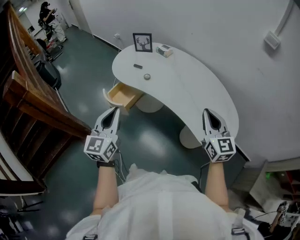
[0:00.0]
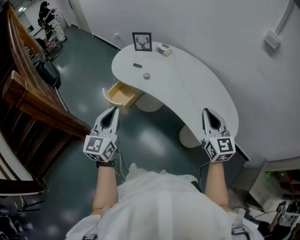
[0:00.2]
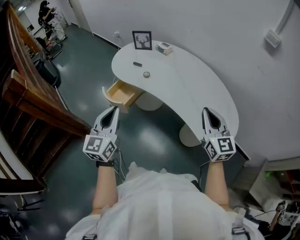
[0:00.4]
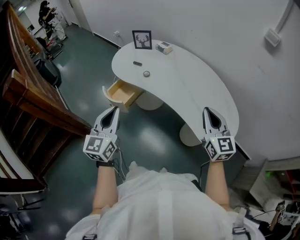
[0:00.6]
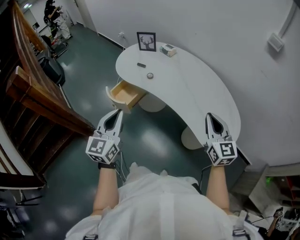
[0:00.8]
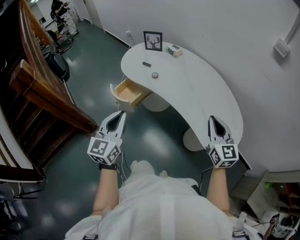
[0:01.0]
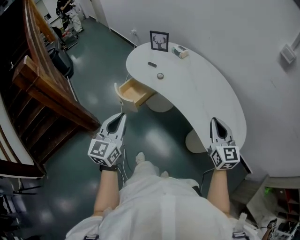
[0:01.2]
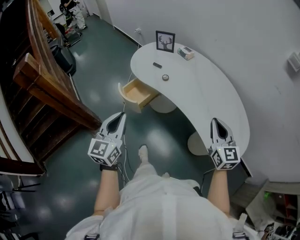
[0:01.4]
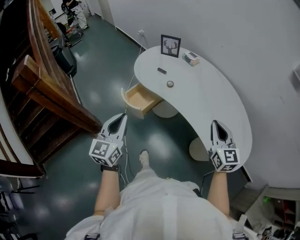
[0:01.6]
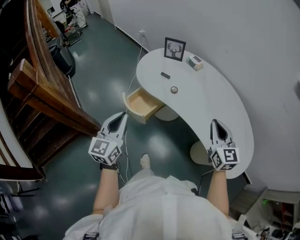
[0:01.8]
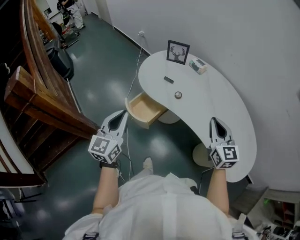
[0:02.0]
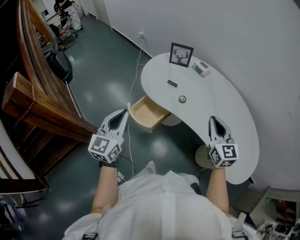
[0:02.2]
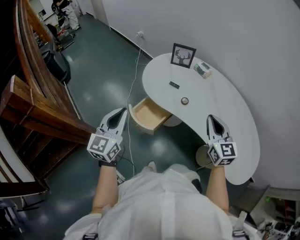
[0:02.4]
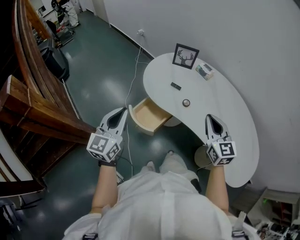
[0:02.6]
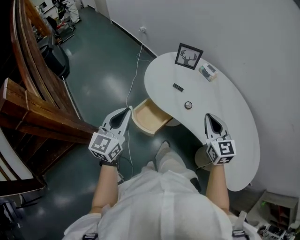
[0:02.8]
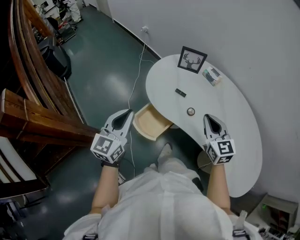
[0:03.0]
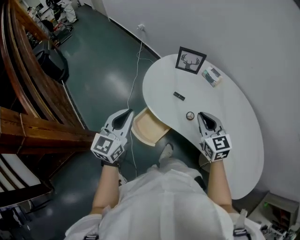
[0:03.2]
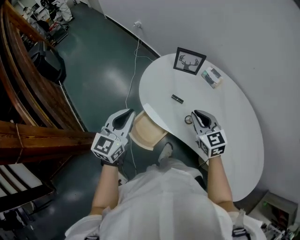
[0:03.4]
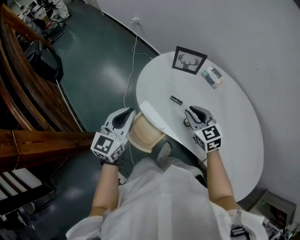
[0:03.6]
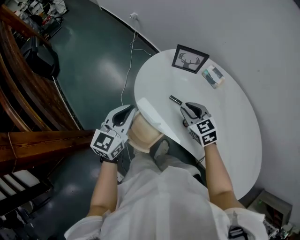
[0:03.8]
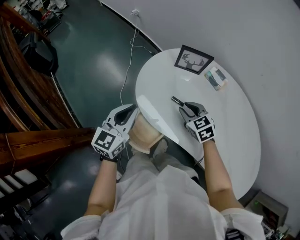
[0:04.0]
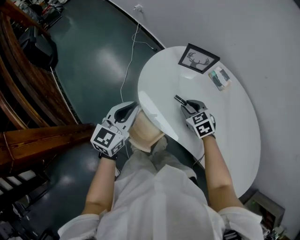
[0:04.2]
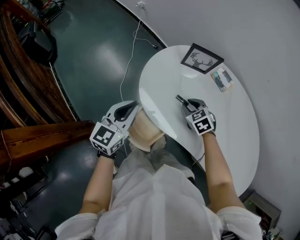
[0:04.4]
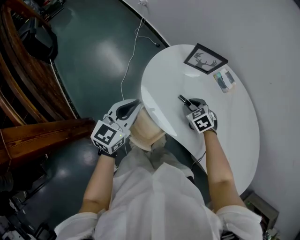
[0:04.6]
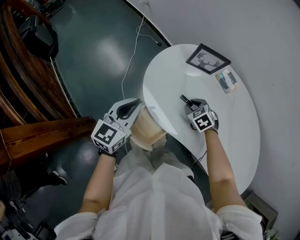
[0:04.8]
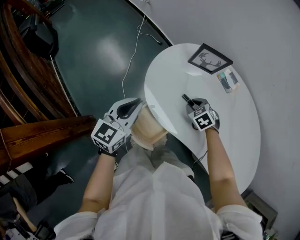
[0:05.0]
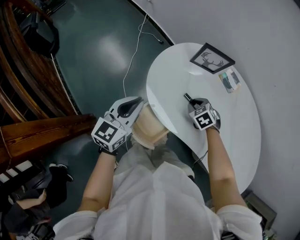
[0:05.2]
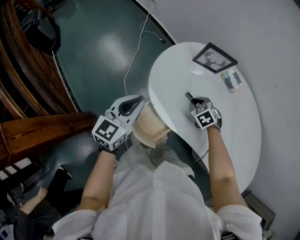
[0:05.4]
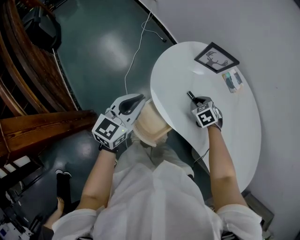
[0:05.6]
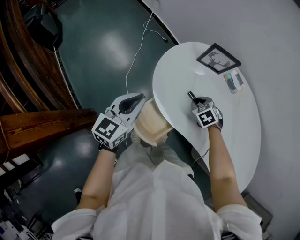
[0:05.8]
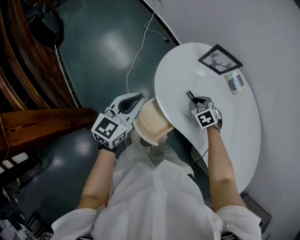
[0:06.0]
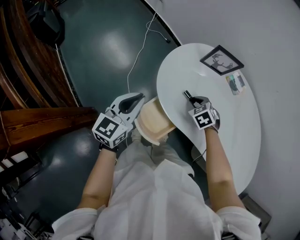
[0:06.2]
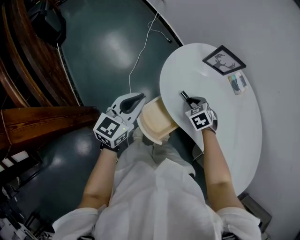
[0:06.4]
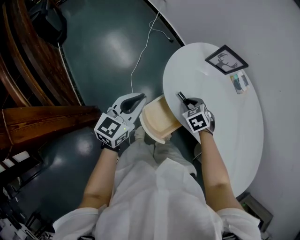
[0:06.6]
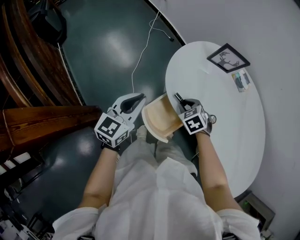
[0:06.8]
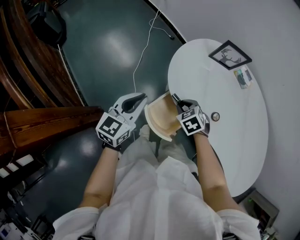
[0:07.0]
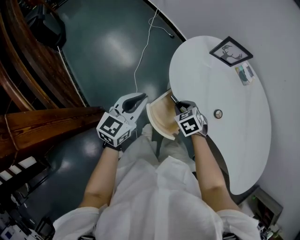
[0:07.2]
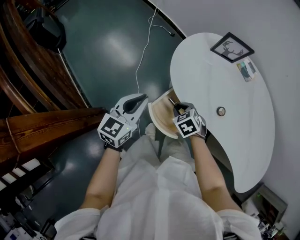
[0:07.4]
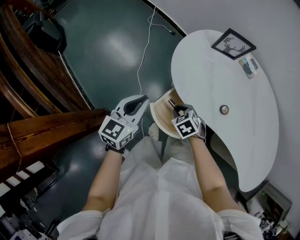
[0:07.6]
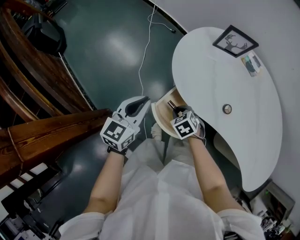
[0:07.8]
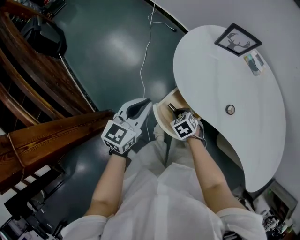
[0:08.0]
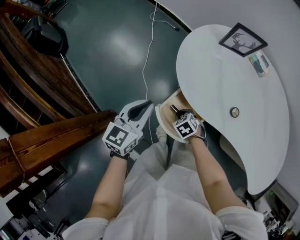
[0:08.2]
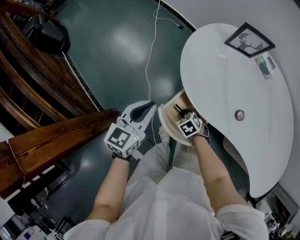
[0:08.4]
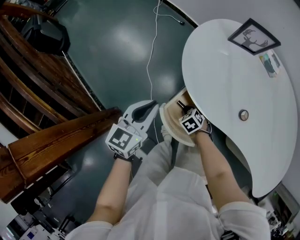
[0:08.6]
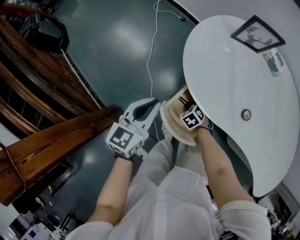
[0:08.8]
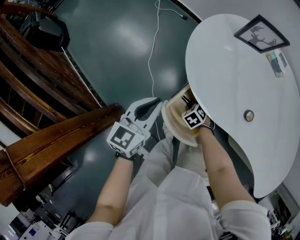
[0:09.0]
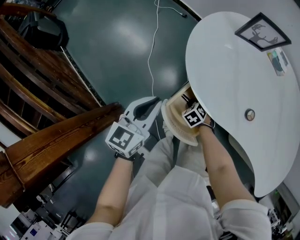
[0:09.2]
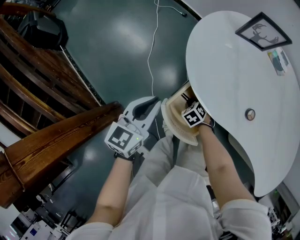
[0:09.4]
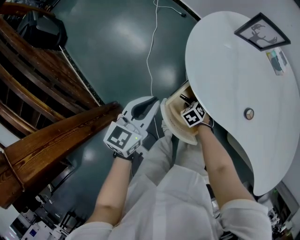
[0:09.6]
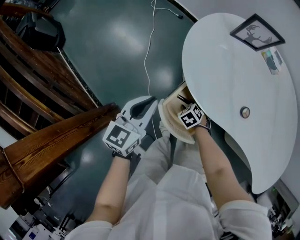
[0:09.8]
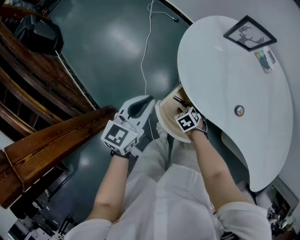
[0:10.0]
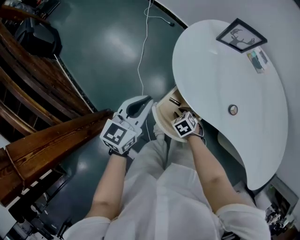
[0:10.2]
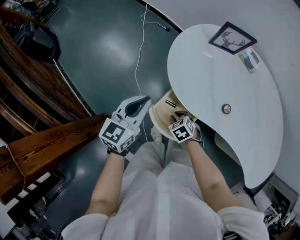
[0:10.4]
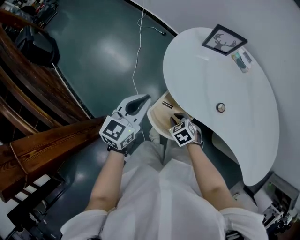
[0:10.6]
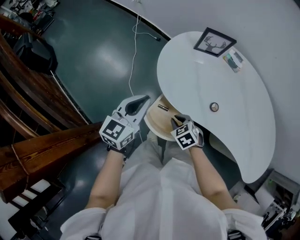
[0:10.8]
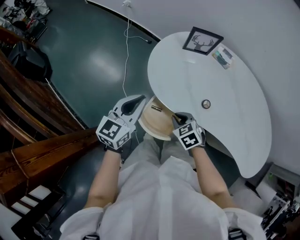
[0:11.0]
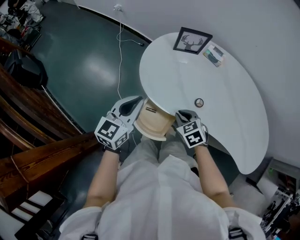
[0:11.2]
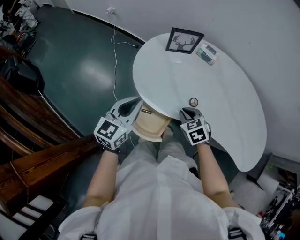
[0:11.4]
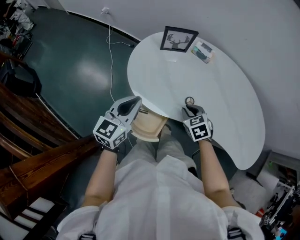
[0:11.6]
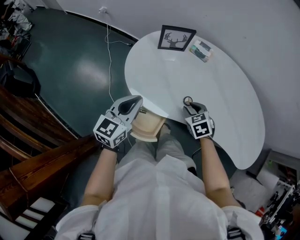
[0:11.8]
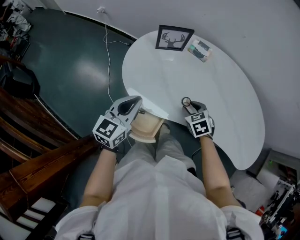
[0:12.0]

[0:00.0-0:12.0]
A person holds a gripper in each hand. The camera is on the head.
0:00.0 to 0:01.6: The left gripper moves to the left, about 5 cm; the right gripper heads forward and to the left, covering roughly 10 cm.
0:01.6 to 0:03.0: Both grippers move forward and to the left, roughly 30 cm.
0:03.0 to 0:04.4: The right gripper shifts approximately 30 cm downward and forward, tilts its fingers approximately 40 degrees downward, and opens its fingers. The left gripper travels forward and downward by roughly 20 cm.
0:04.4 to 0:06.0: The left gripper goes some 5 cm to the left.
0:06.0 to 0:07.6: The right gripper is displaced to the left and backward by some 20 cm; the left gripper heads to the left, covering some 5 cm.
0:07.6 to 0:09.0: The right gripper moves downward, some 20 cm. Meanwhile the left gripper heads downward, covering some 5 cm.
0:09.0 to 0:10.4: The right gripper is displaced upward by approximately 15 cm, while the left gripper travels upward by approximately 5 cm.
0:10.4 to 0:12.0: The left gripper changes place by approximately 15 cm; the right gripper shifts by roughly 30 cm, and changes its angle by about 30 degrees.

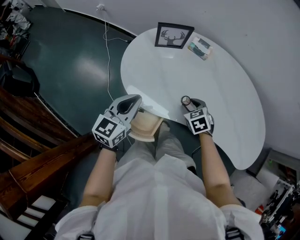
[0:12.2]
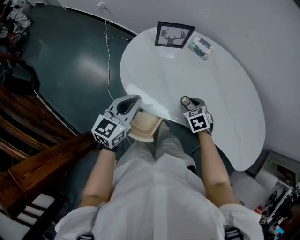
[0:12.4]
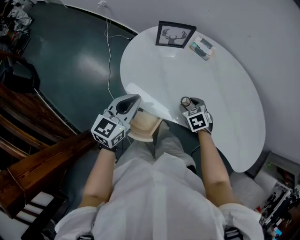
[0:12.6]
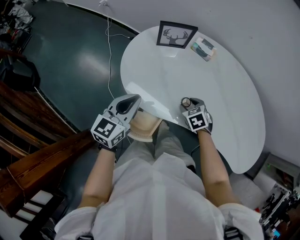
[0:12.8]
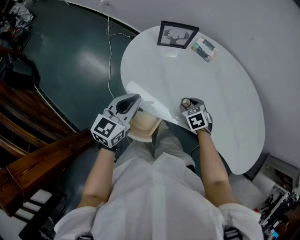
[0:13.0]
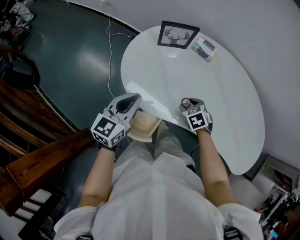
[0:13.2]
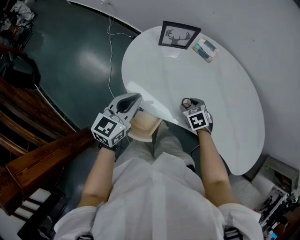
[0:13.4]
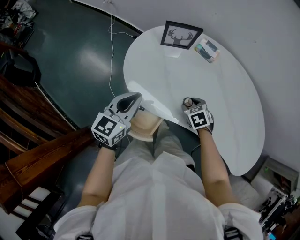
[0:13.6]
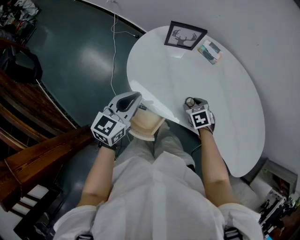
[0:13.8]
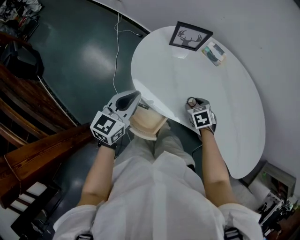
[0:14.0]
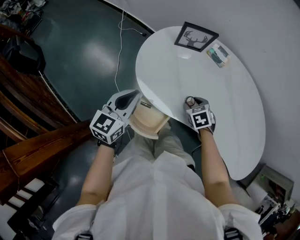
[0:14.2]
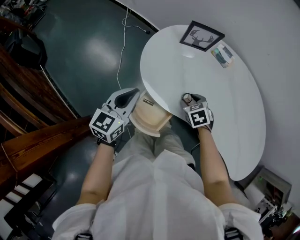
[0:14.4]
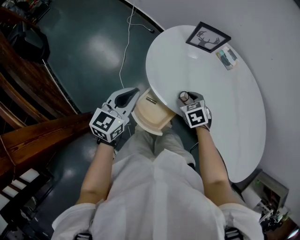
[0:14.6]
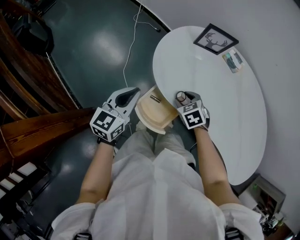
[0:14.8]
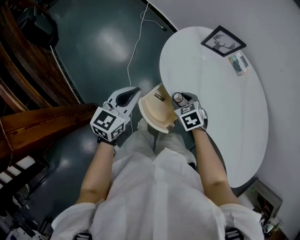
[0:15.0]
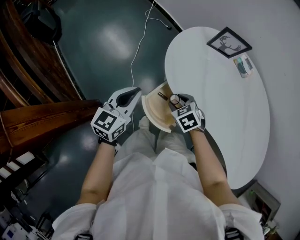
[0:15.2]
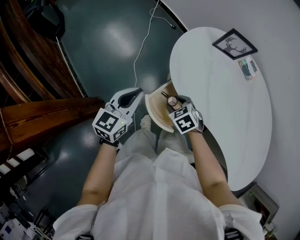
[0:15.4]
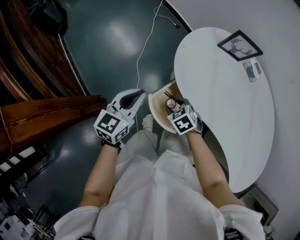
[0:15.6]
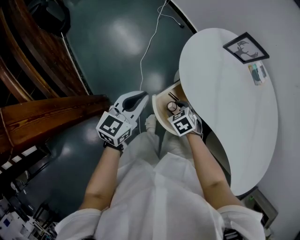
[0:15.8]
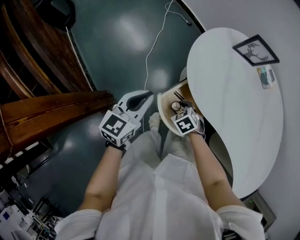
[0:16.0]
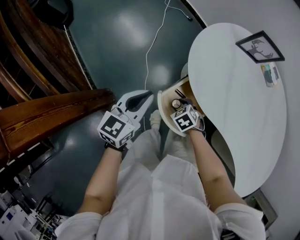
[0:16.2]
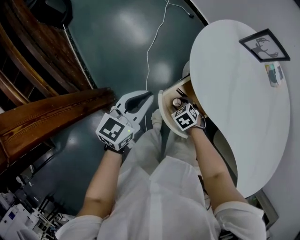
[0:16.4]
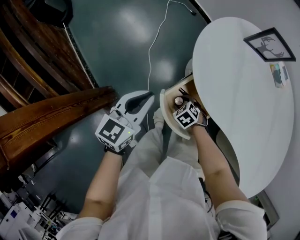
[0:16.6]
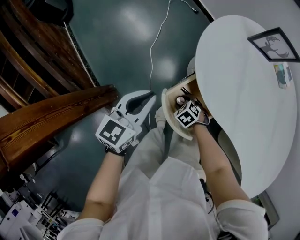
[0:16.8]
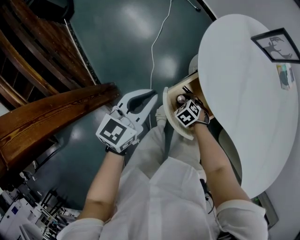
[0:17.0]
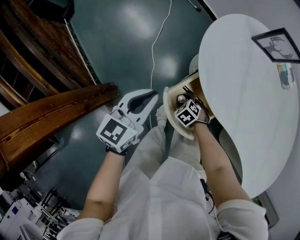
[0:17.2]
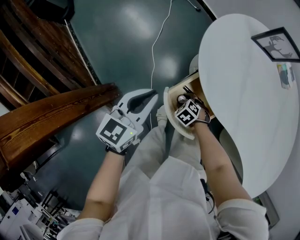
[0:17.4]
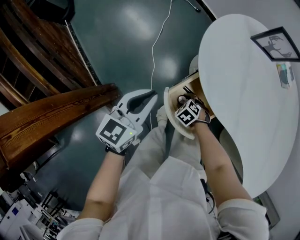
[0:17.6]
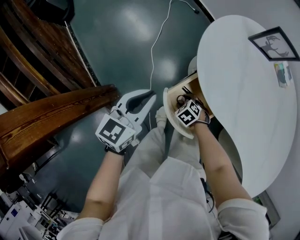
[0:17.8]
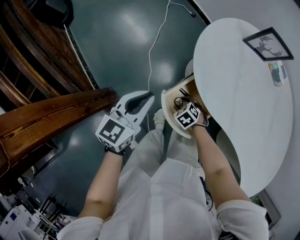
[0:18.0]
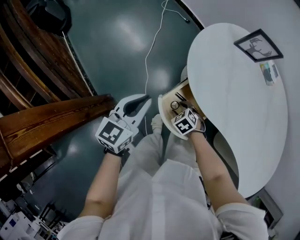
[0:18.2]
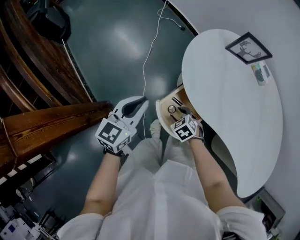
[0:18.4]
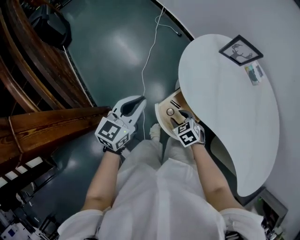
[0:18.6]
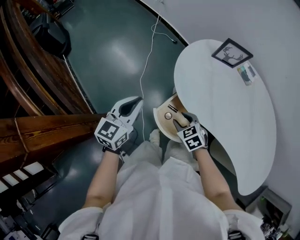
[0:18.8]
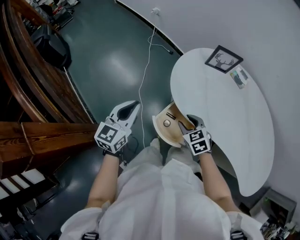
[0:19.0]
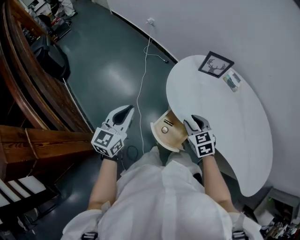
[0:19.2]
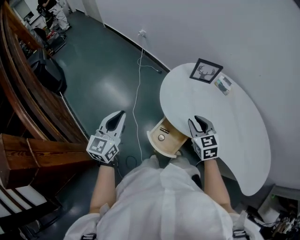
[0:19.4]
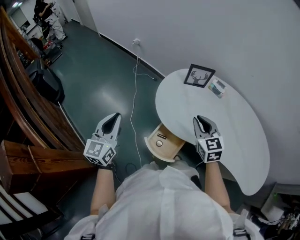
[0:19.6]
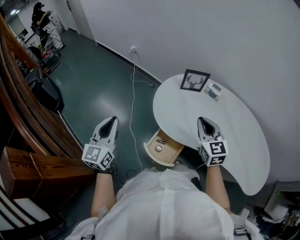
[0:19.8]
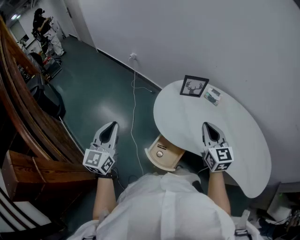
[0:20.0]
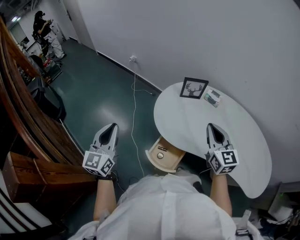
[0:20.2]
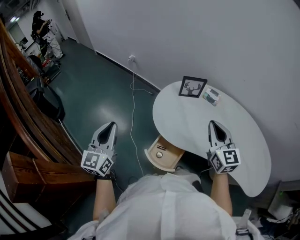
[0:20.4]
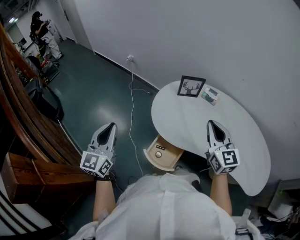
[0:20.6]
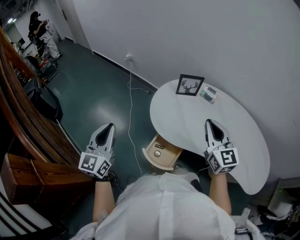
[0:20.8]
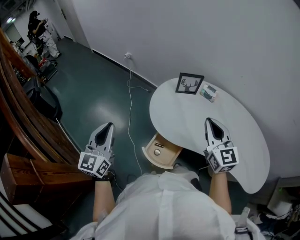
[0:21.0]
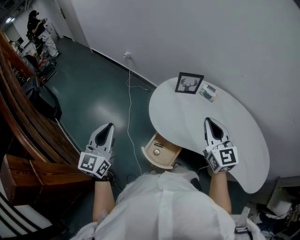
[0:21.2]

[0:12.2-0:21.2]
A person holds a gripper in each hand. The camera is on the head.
0:12.2 to 0:13.8: The grippers make only small movements.
0:13.8 to 0:15.2: The right gripper heads to the left, covering about 20 cm, and swivels roughly 30 degrees, while the left gripper is displaced to the left and backward by approximately 15 cm.
0:15.2 to 0:16.6: The left gripper heads downward, covering some 5 cm. Meanwhile the right gripper goes some 20 cm downward.
0:16.6 to 0:18.2: There are only small adjustments of the grippers.
0:18.2 to 0:19.8: The left gripper heads upward, covering some 20 cm, and turns by some 20 degrees. The right gripper shifts some 40 cm upward, tips its fingers upward by approximately 50 degrees, and closes.
0:19.8 to 0:21.2: The right gripper moves upward, approximately 5 cm.

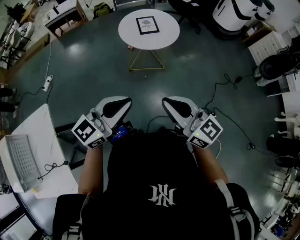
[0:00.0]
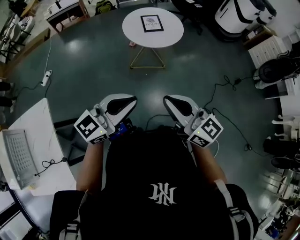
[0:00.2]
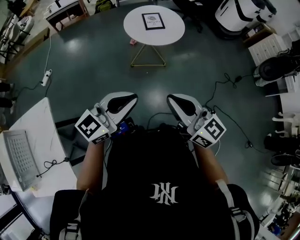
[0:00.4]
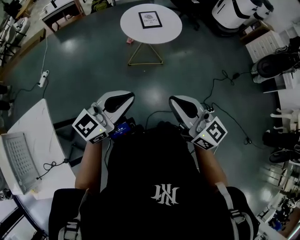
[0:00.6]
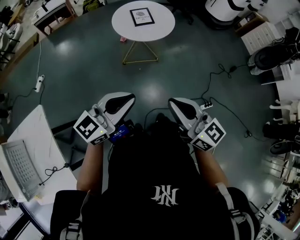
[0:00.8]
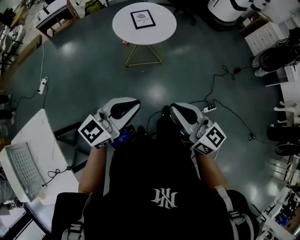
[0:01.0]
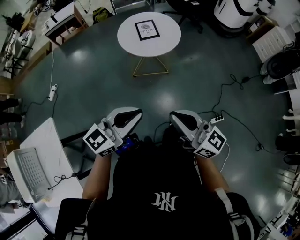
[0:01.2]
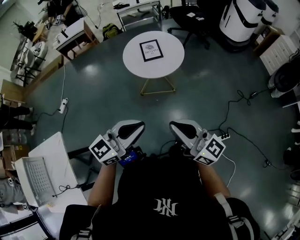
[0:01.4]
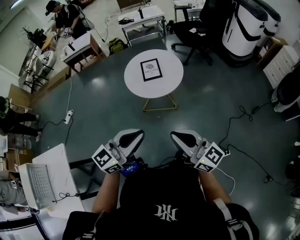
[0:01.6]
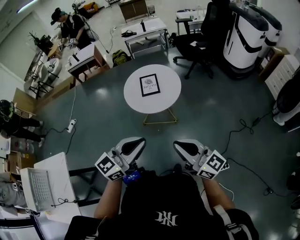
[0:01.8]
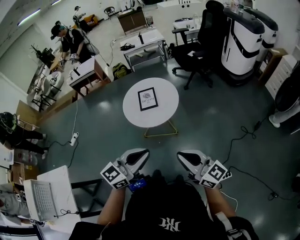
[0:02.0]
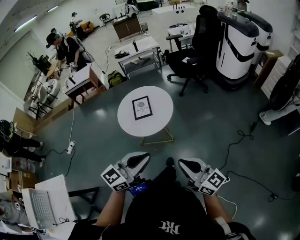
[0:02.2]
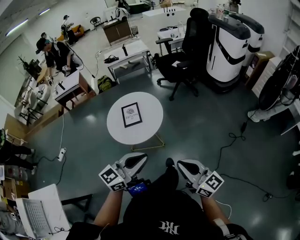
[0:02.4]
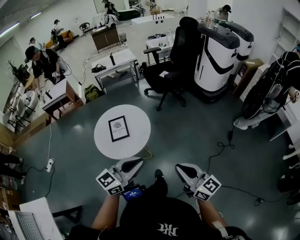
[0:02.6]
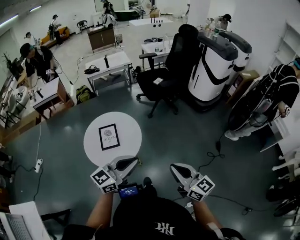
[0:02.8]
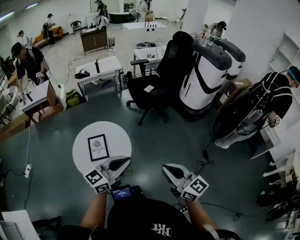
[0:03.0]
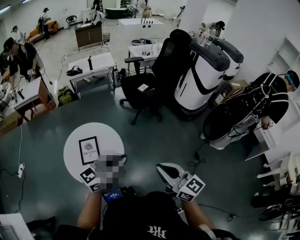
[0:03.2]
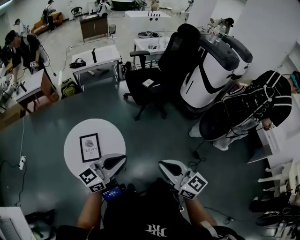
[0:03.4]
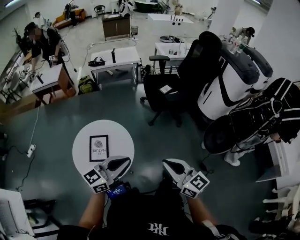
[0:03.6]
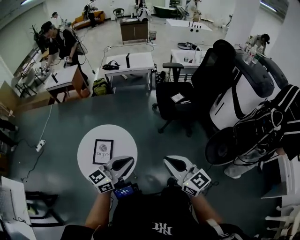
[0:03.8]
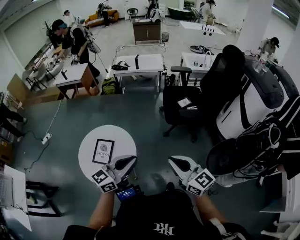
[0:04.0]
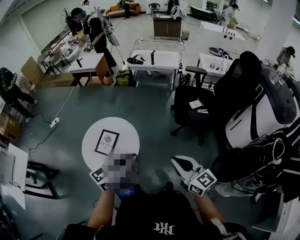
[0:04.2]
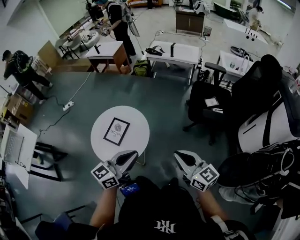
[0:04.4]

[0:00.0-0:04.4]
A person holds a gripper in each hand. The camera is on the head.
0:00.0 to 0:01.4: Both grippers travel together forward and to the right, roughly 10 cm.
0:01.4 to 0:03.0: The pair of grippers is taken forward and to the right, some 50 cm.
0:03.0 to 0:04.4: The right gripper changes place by some 35 cm, and turns by approximately 40 degrees; the left gripper shifts by some 20 cm, and rotates approximately 50 degrees.
